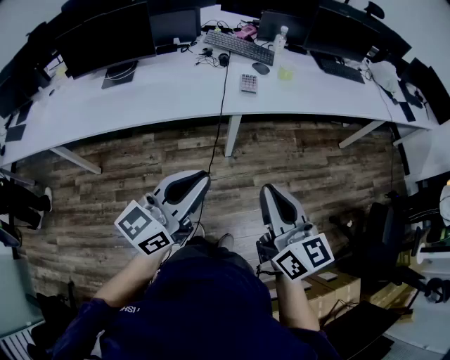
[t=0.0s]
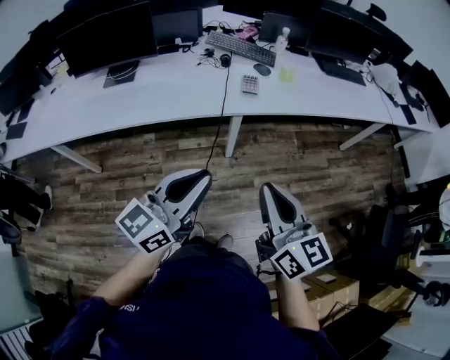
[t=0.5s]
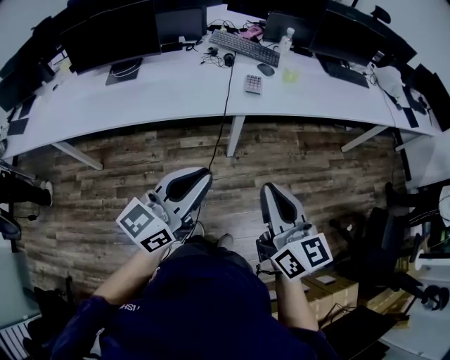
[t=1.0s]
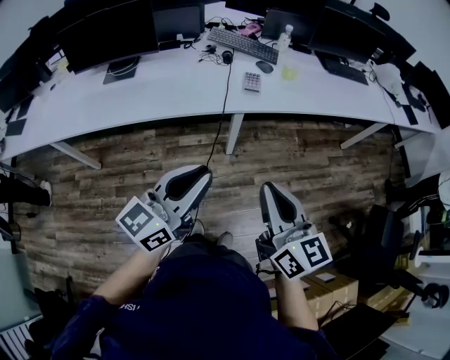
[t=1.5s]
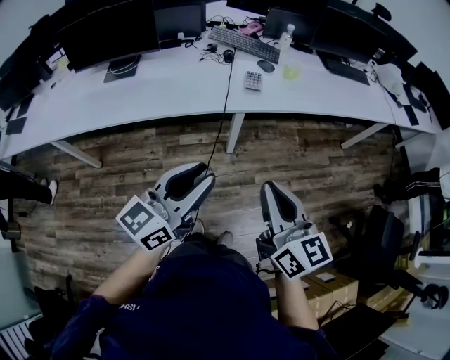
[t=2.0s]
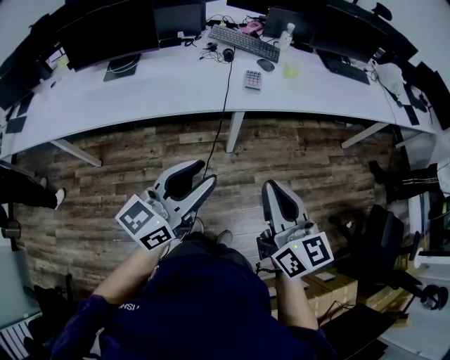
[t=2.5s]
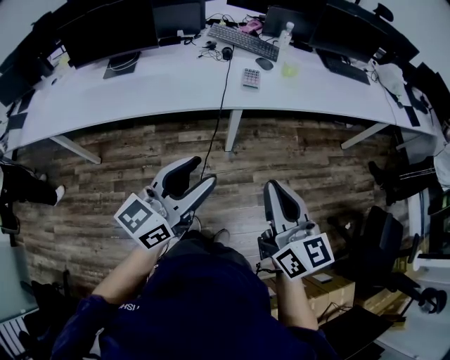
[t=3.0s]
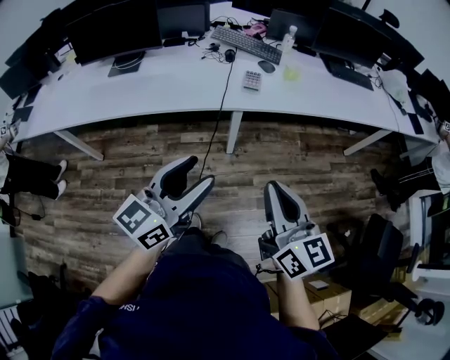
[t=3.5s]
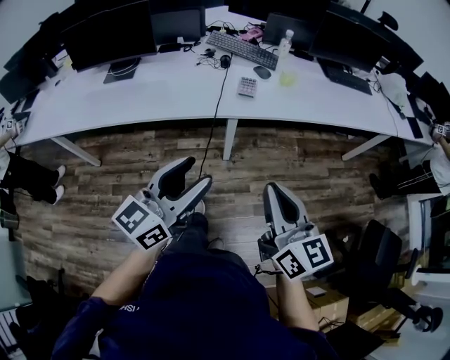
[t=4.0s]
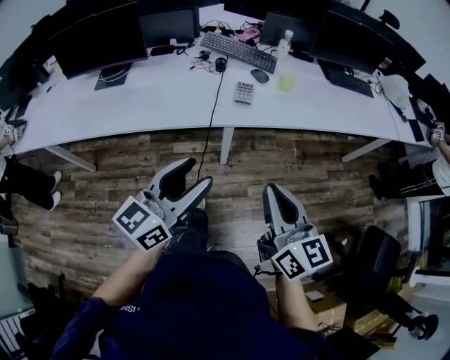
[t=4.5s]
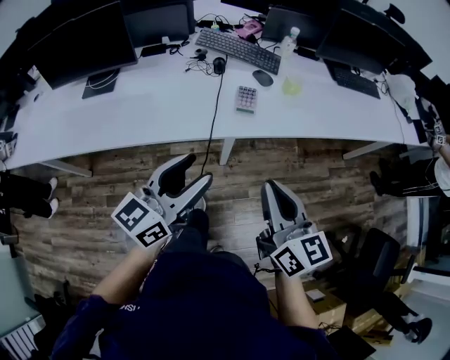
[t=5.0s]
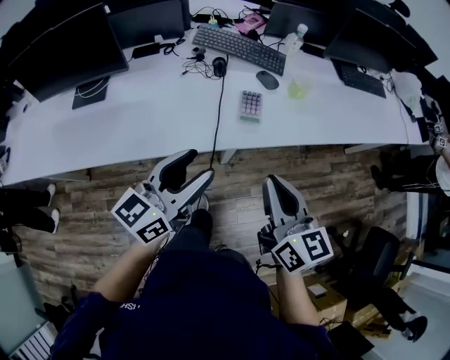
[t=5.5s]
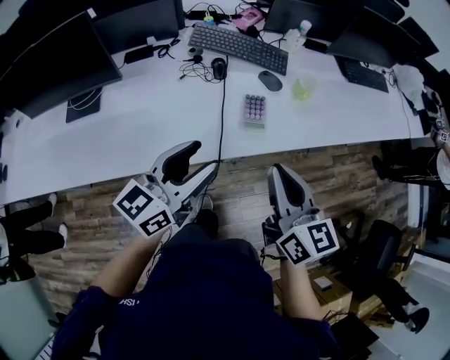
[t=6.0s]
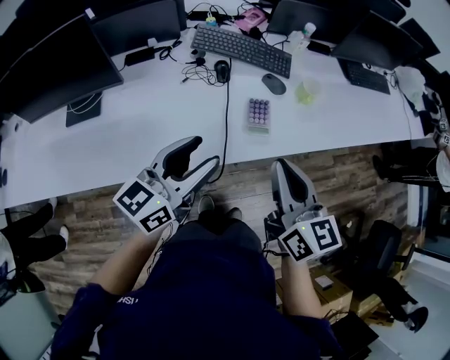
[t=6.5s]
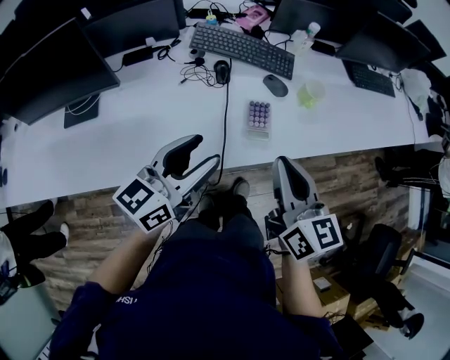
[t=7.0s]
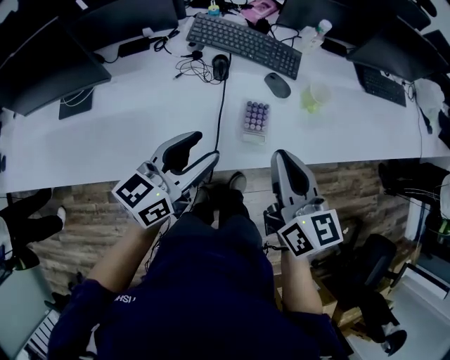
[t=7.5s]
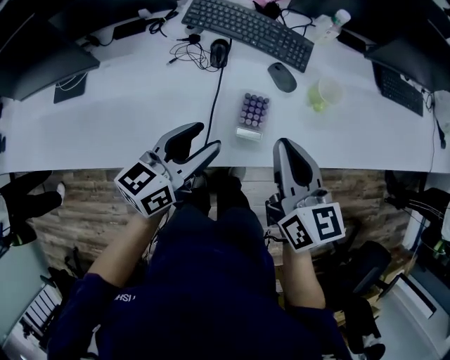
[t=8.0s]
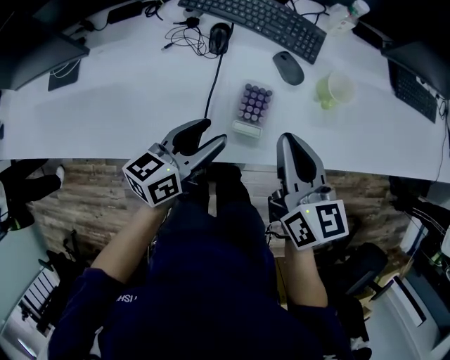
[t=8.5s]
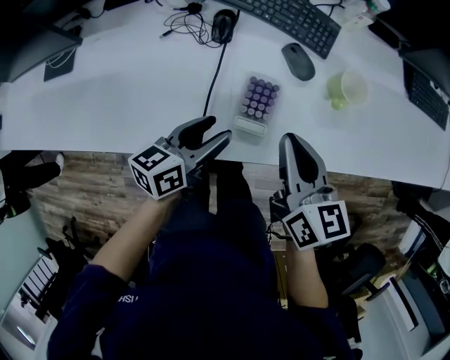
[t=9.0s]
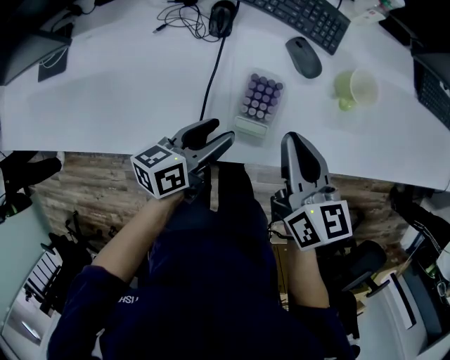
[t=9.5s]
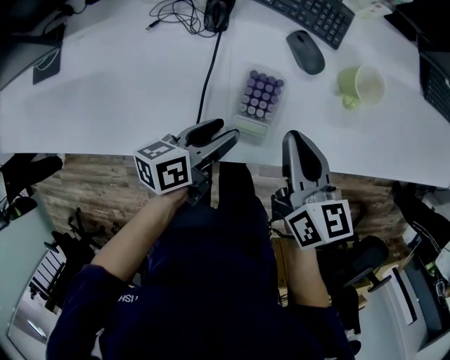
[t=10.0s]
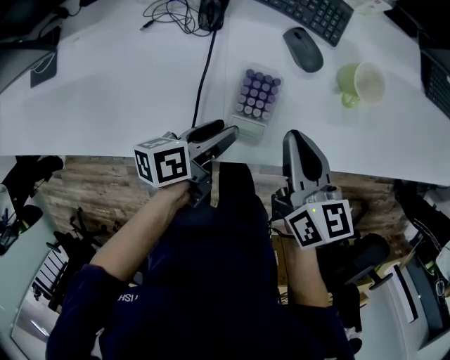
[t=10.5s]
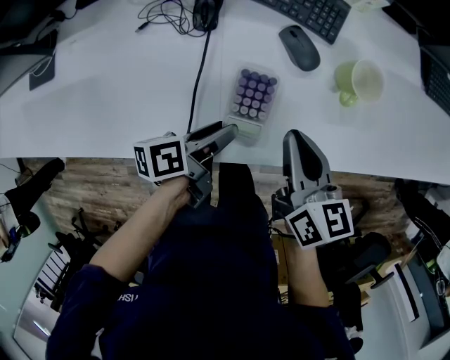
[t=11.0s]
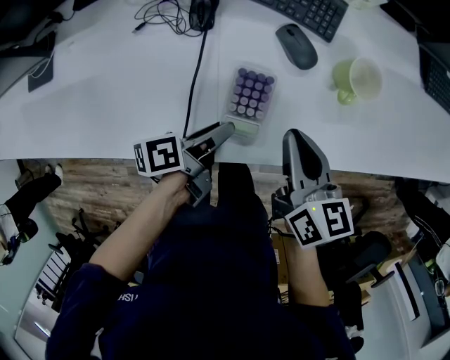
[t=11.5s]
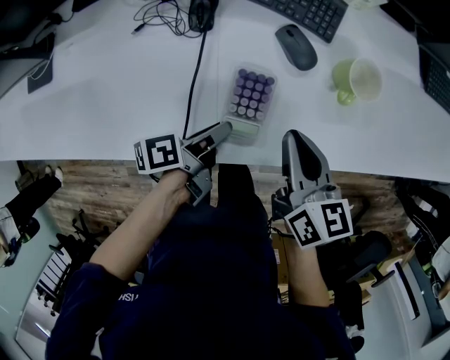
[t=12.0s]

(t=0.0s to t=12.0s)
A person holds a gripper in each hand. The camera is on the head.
t=0.0s - t=2.0s: The two grippers keep their place.
t=2.0s - t=4.0s: The left gripper changes place by about 5 cm, and opens. The right gripper is displaced to the right by approximately 5 cm.
t=4.0s - t=6.0s: Both grippers move forward, about 30 cm.
t=6.0s - t=8.0s: The right gripper is displaced forward by some 15 cm. Meanwhile the left gripper moves forward and downward, roughly 15 cm.
t=8.0s - t=10.0s: The grippers both shift downward by about 15 cm. The left gripper swivels roughly 30 degrees.
t=10.0s - t=12.0s: The left gripper swivels about 30 degrees, and closes.

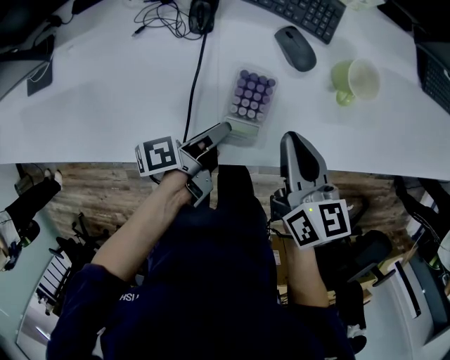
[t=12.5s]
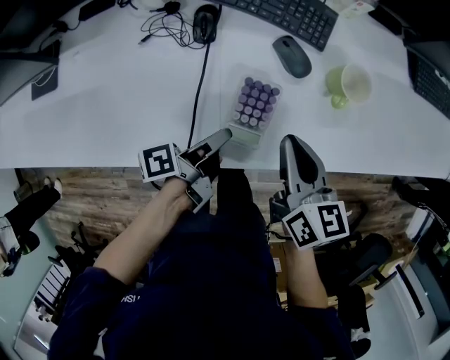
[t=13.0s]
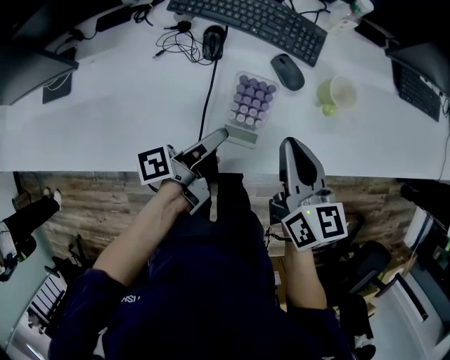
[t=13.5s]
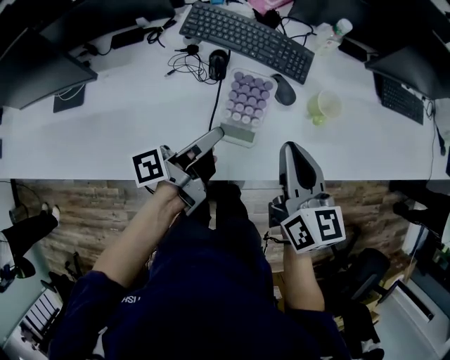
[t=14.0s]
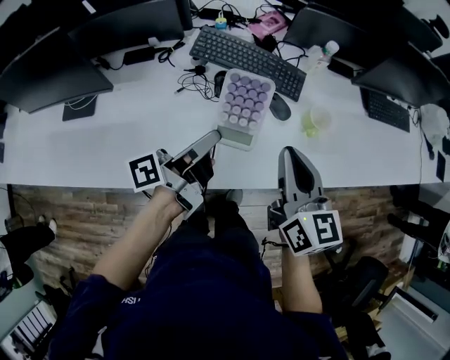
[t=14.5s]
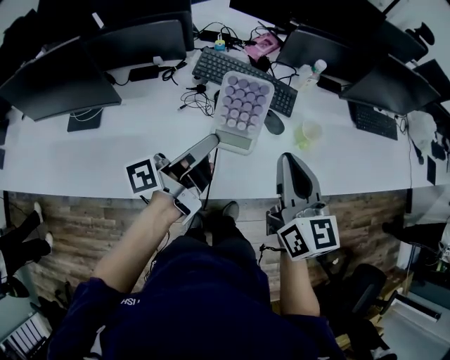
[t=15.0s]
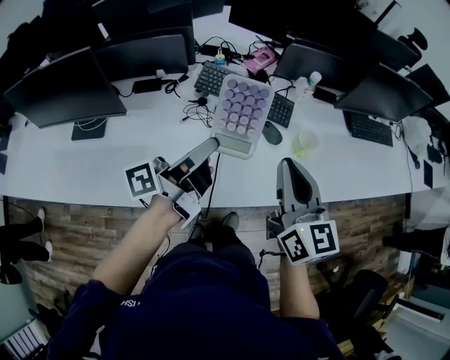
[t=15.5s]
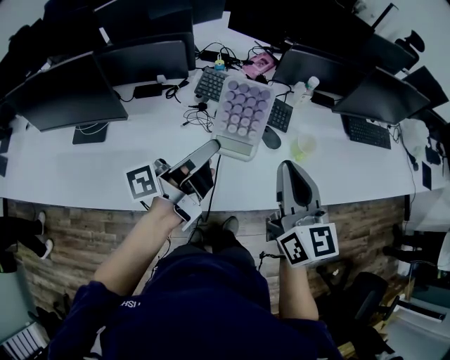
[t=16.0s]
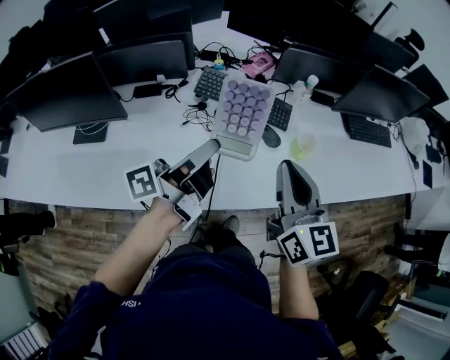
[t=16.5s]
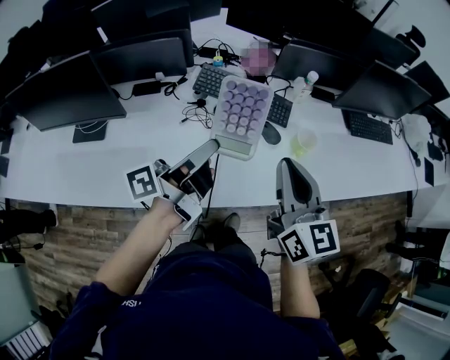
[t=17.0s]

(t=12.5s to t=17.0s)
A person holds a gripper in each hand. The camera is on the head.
t=12.5s - t=14.5s: The grippers both shift upward by approximately 20 cm. The left gripper swivels approximately 30 degrees; the right gripper rotates about 20 degrees.
t=14.5s - t=17.0s: The two grippers go roughly 10 cm upward.

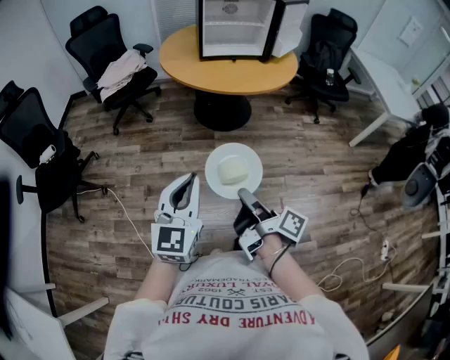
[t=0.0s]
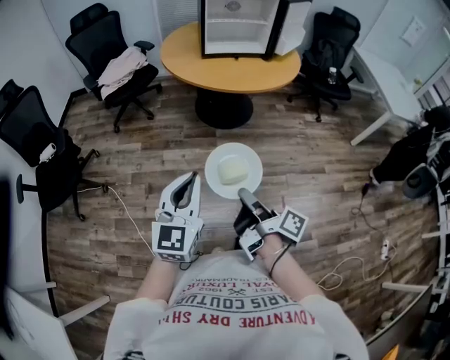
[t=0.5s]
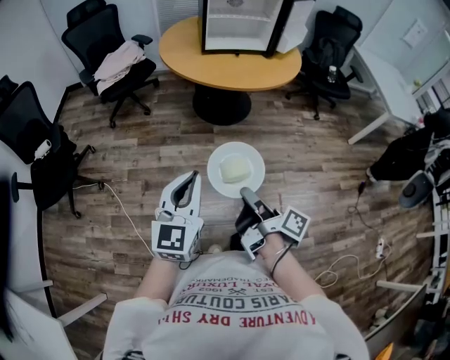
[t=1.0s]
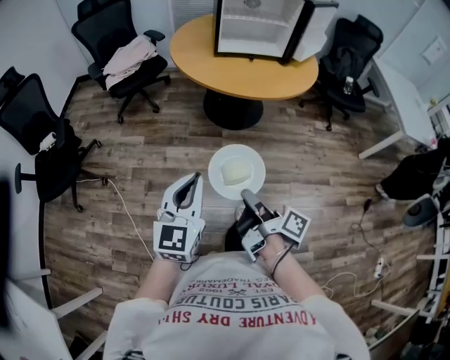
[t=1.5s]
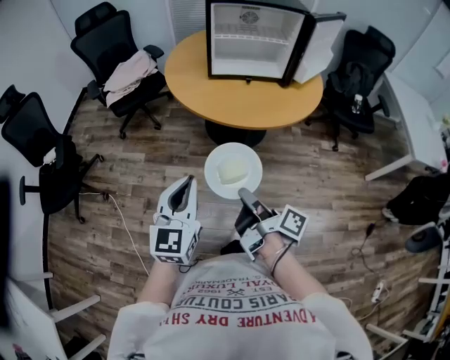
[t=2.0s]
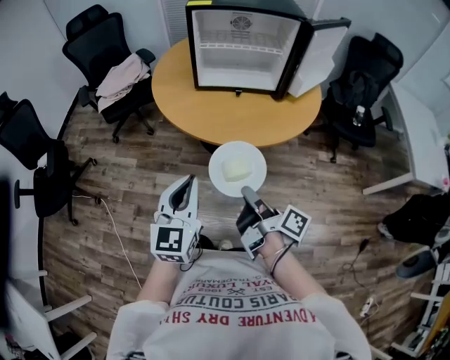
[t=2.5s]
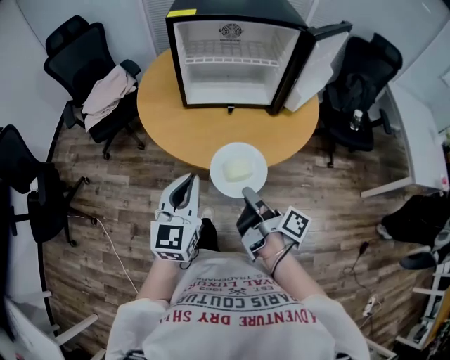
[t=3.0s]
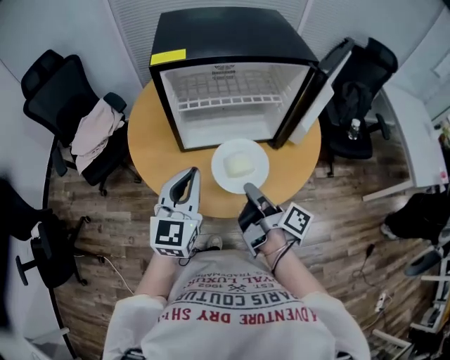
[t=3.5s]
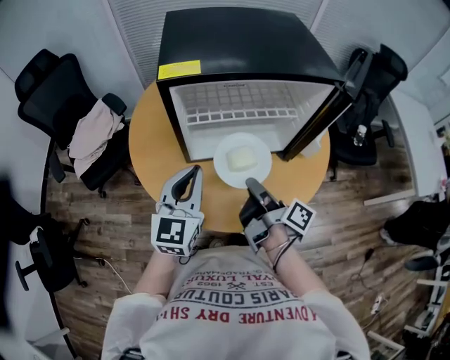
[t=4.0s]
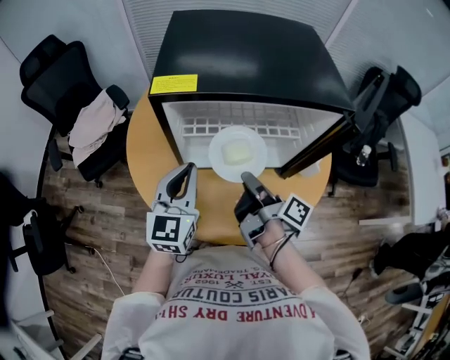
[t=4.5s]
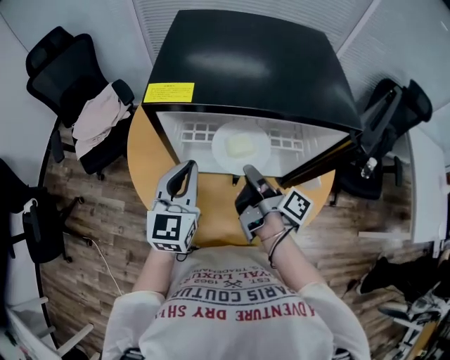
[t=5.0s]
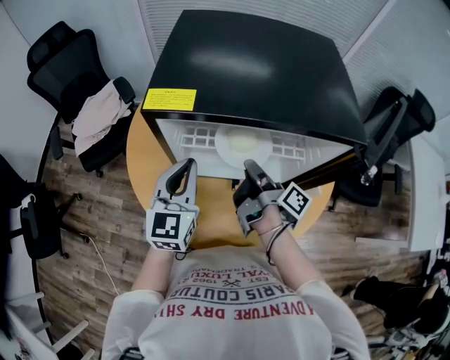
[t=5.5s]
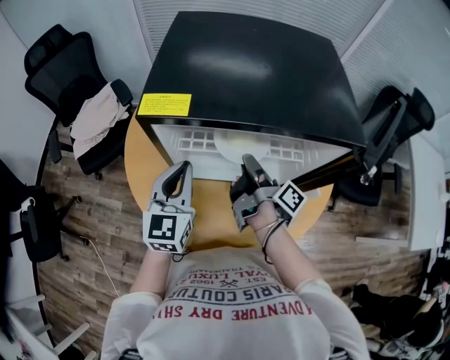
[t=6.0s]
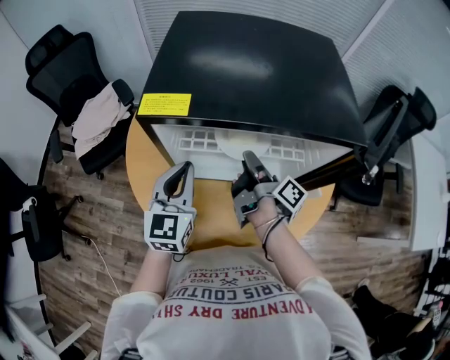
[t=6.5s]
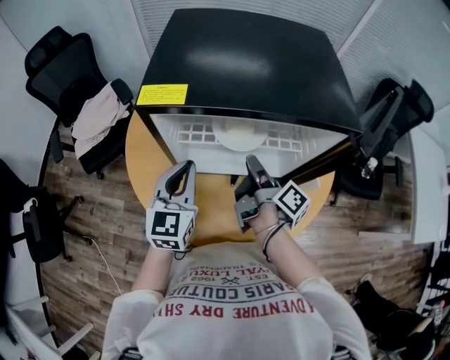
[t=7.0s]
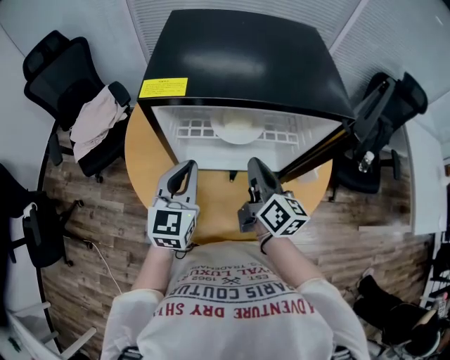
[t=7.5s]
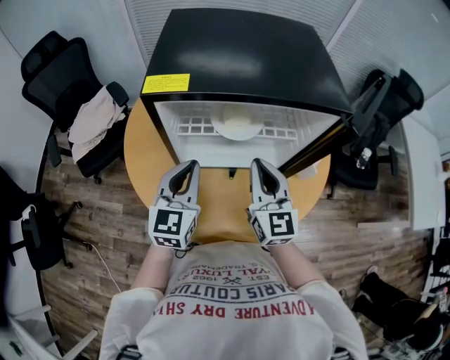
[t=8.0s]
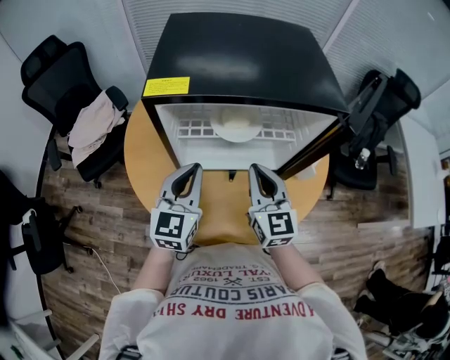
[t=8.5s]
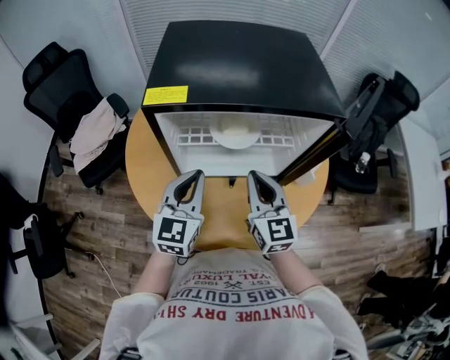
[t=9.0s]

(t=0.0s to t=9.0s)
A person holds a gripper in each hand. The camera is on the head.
t=0.0s - t=2.0s: The left gripper ends up about 25 cm from where it was.
t=2.0s - t=4.5s: The left gripper shifts by about 50 cm.

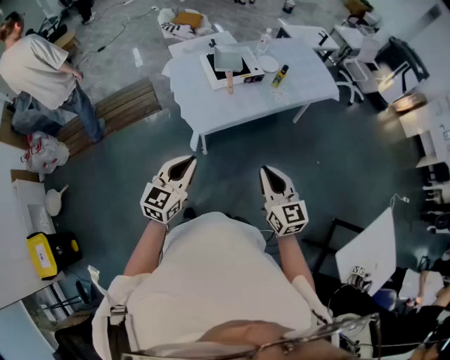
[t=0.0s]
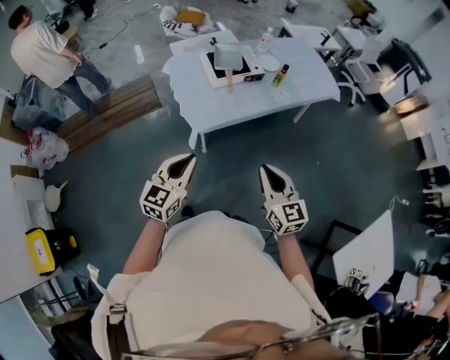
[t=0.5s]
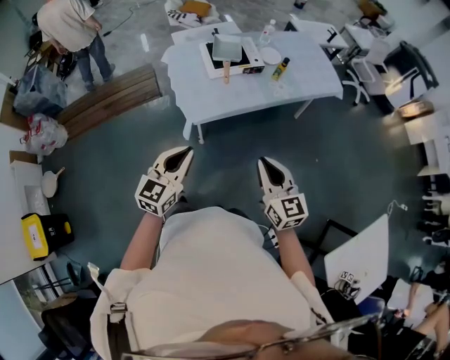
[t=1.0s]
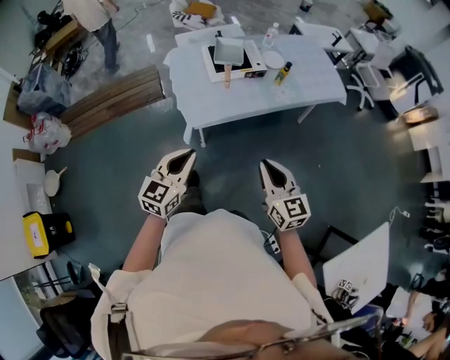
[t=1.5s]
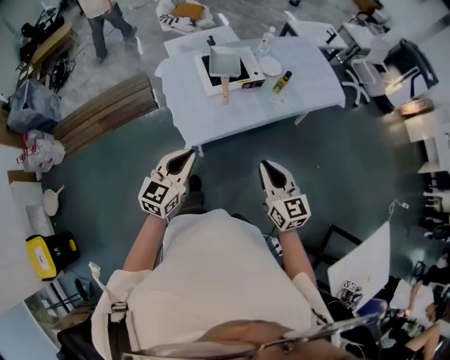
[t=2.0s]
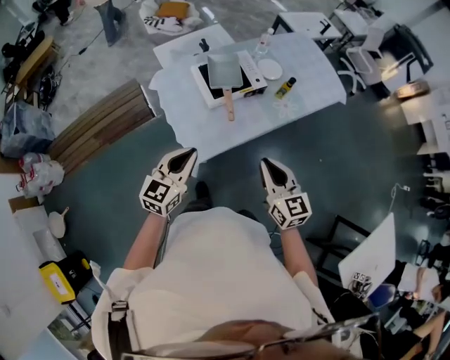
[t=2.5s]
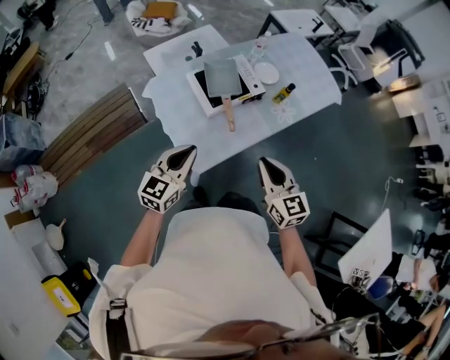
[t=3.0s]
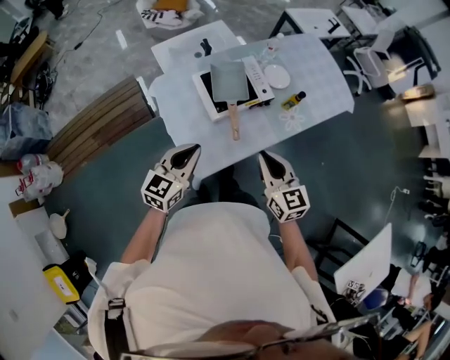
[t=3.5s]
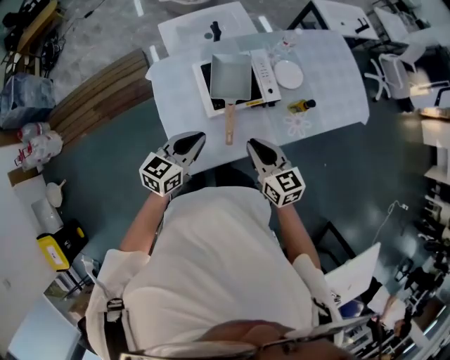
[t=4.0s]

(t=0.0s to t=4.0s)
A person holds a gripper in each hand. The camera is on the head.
t=0.0s - t=2.0s: Both grippers travel together forward, approximately 15 cm.
t=2.0s - t=4.0s: Both grippers move forward, roughly 30 cm.
